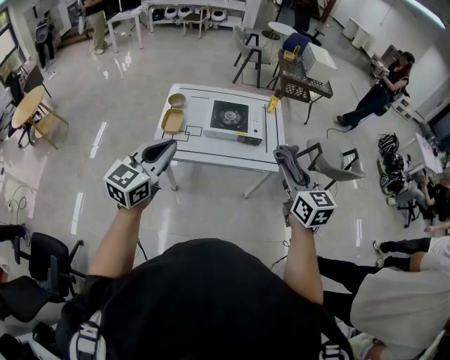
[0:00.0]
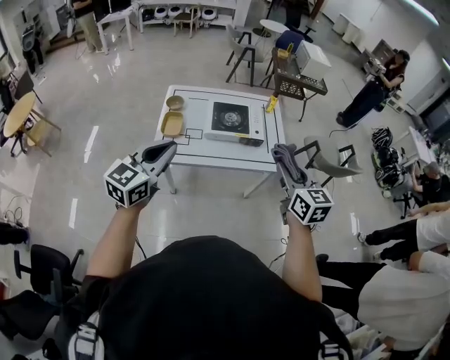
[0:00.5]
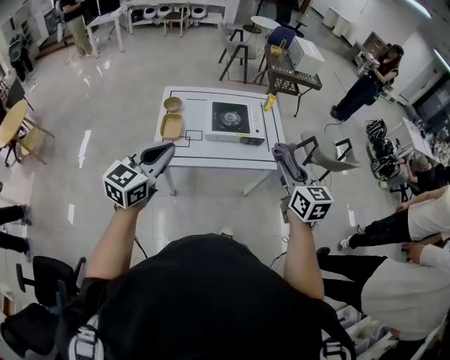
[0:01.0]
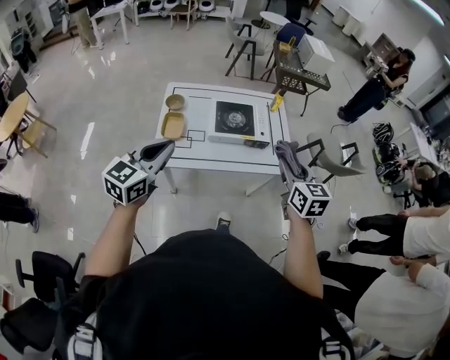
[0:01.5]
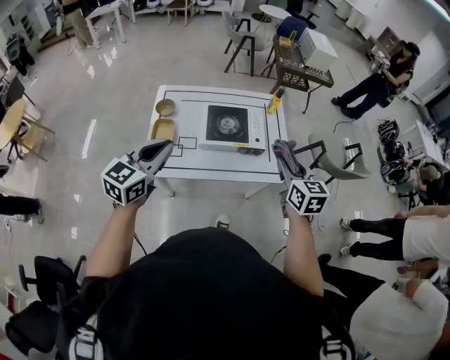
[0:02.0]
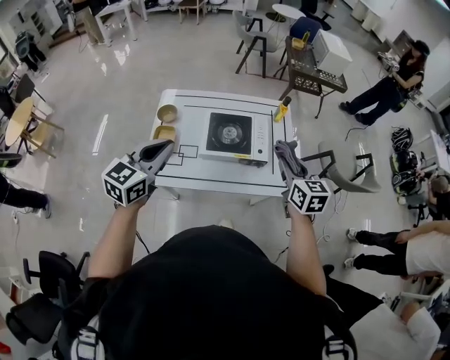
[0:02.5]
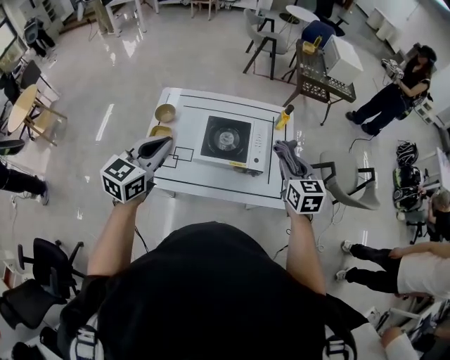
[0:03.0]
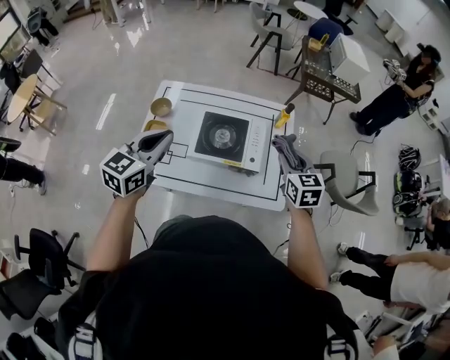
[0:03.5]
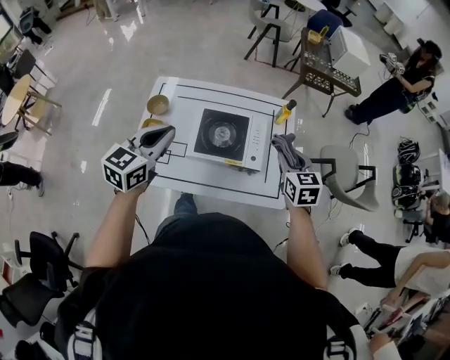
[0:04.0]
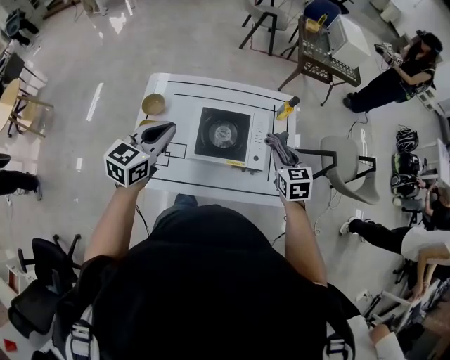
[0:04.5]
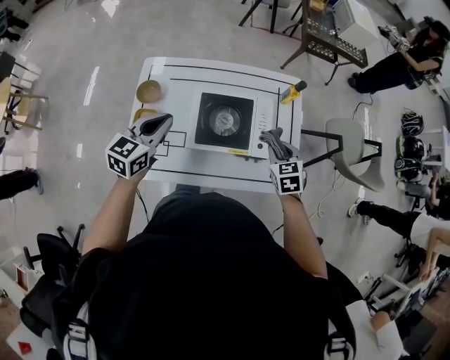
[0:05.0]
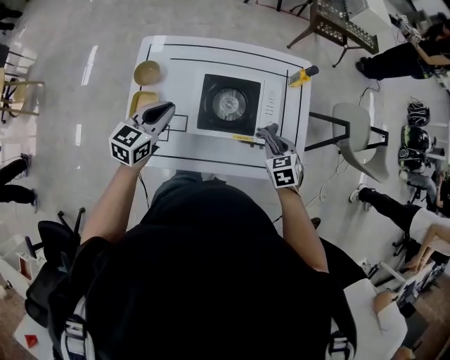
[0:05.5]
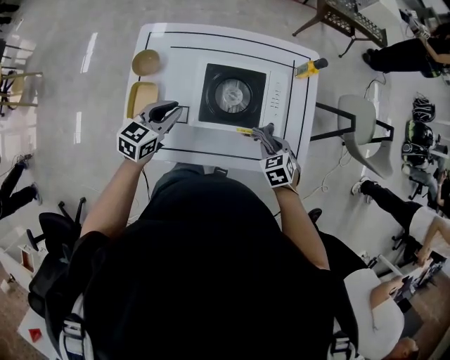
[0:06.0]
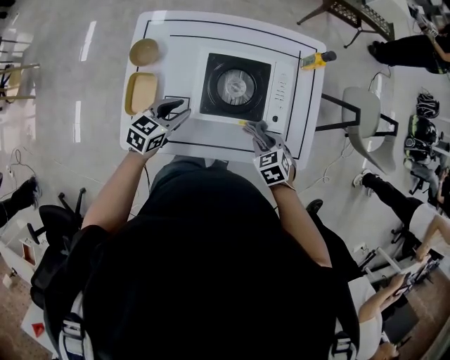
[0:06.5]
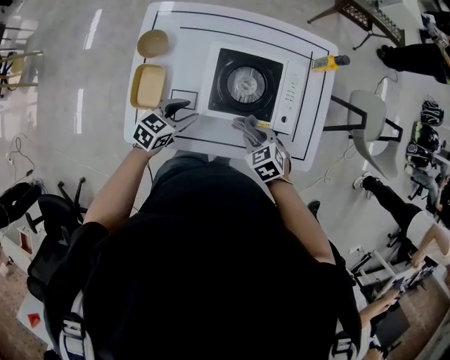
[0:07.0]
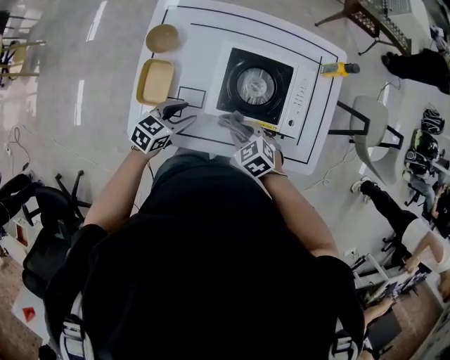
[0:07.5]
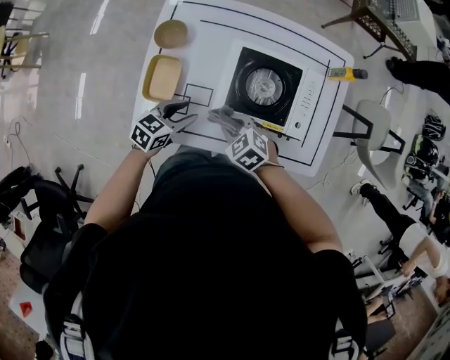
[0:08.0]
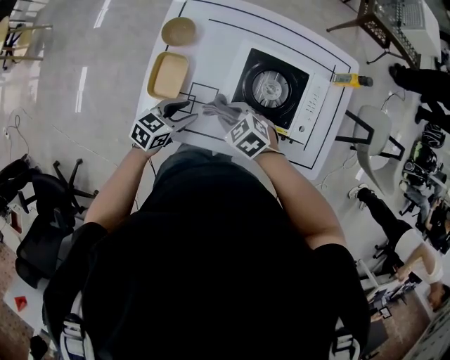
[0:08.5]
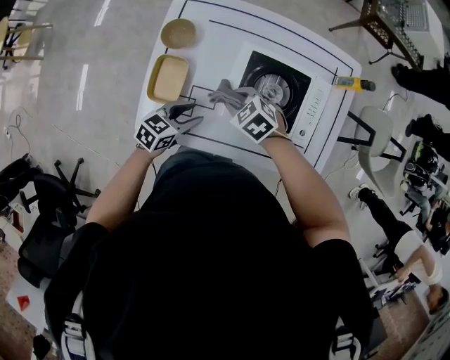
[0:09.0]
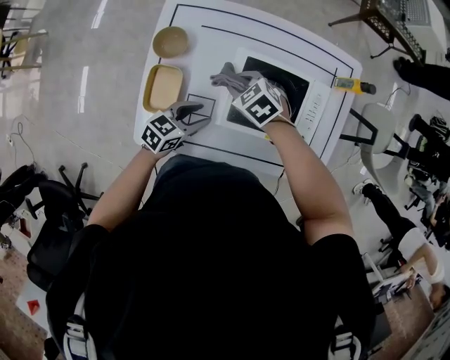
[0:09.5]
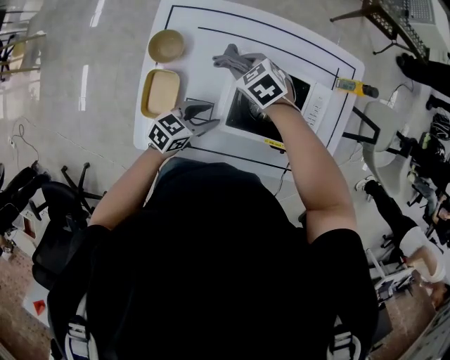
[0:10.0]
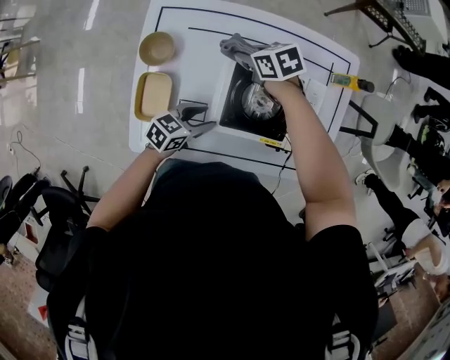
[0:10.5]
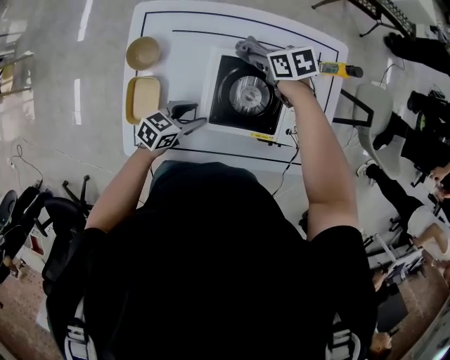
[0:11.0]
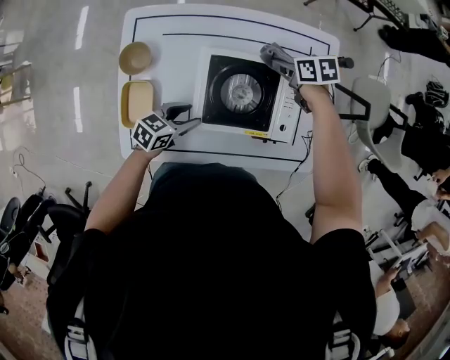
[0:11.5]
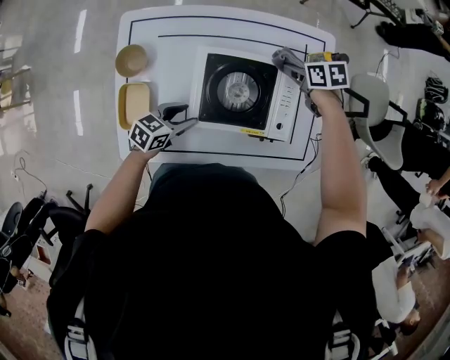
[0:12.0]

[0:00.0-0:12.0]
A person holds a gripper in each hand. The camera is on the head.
0:00.0 to 0:02.0: The right gripper shifts approximately 20 cm forward and downward; the left gripper goes approximately 20 cm forward.
0:02.0 to 0:04.0: The two grippers go about 25 cm forward.
0:04.0 to 0:06.0: The left gripper heads downward and forward, covering approximately 25 cm; the right gripper goes roughly 25 cm downward, and points its fingers some 30 degrees further downward.
0:06.0 to 0:08.0: The left gripper is displaced downward, backward and to the left by about 15 cm, and opens its fingers. Meanwhile the right gripper shifts some 25 cm to the left, and rotates roughly 30 degrees.
0:08.0 to 0:10.0: The right gripper shifts by about 25 cm, while the left gripper shifts by approximately 10 cm.
0:10.0 to 0:12.0: The right gripper shifts by approximately 30 cm, and rolls clockwise, seen from behind, by approximately 40 degrees.

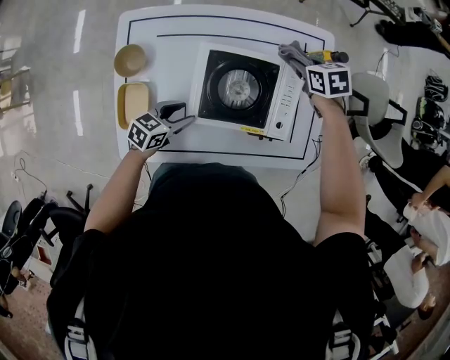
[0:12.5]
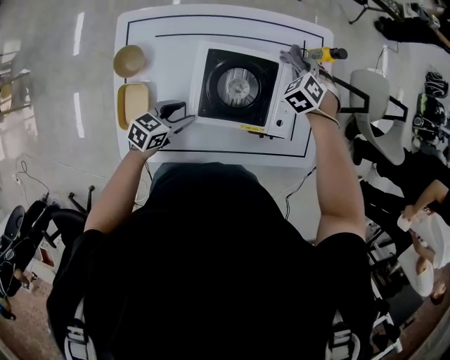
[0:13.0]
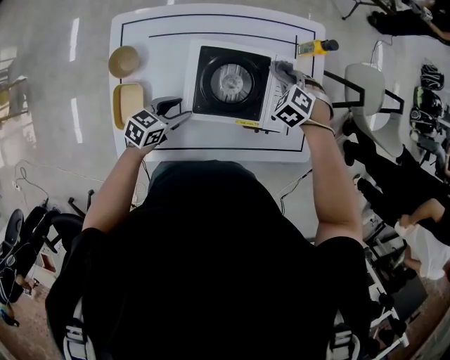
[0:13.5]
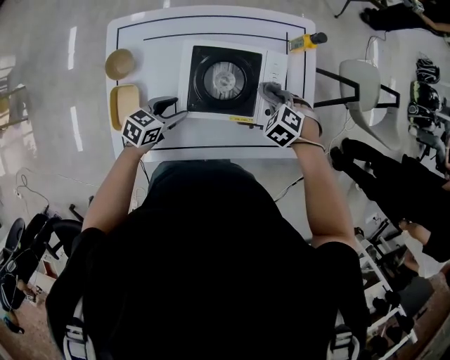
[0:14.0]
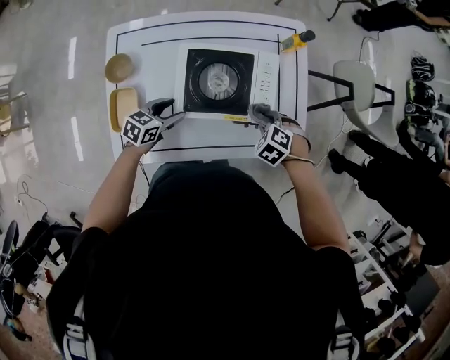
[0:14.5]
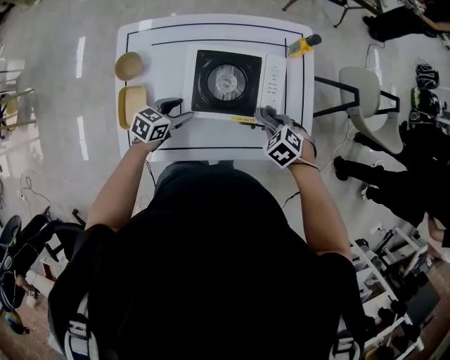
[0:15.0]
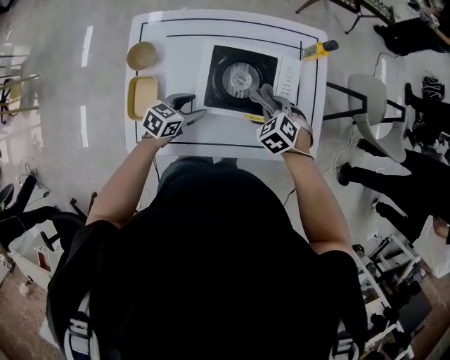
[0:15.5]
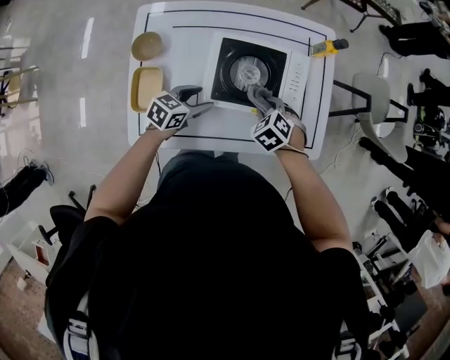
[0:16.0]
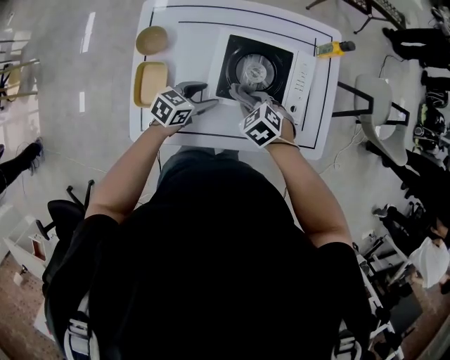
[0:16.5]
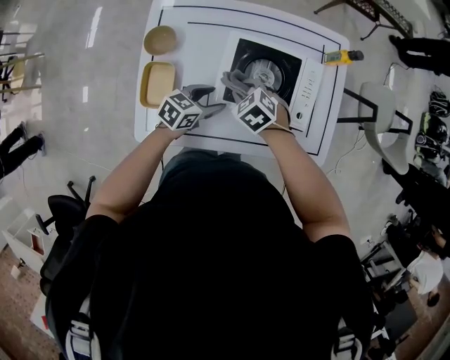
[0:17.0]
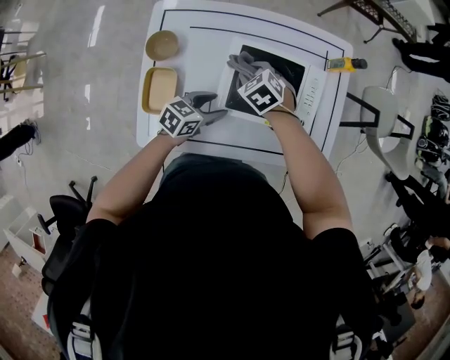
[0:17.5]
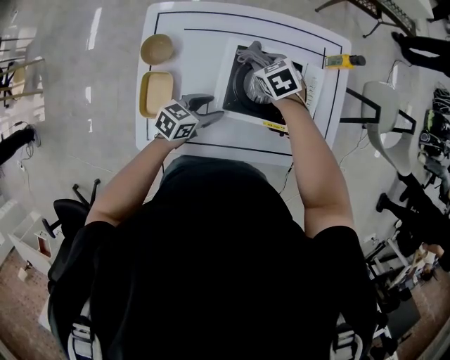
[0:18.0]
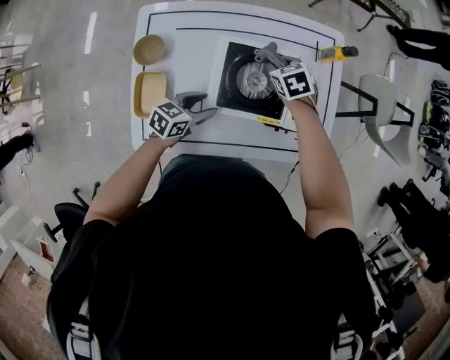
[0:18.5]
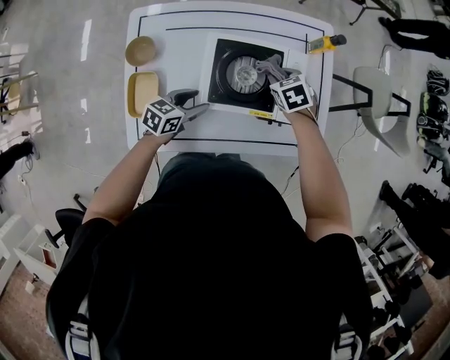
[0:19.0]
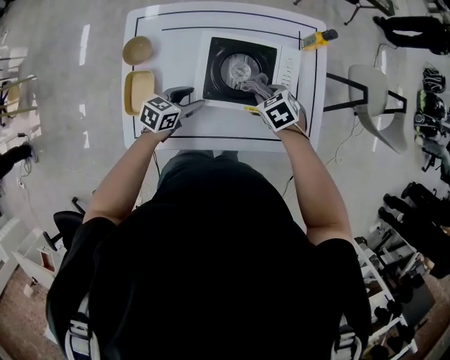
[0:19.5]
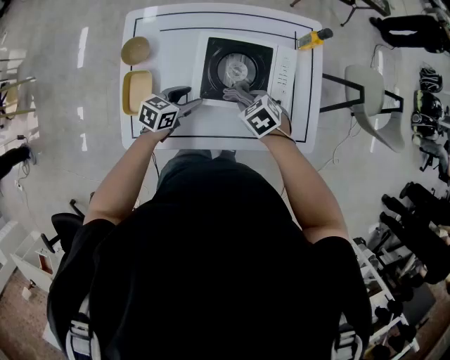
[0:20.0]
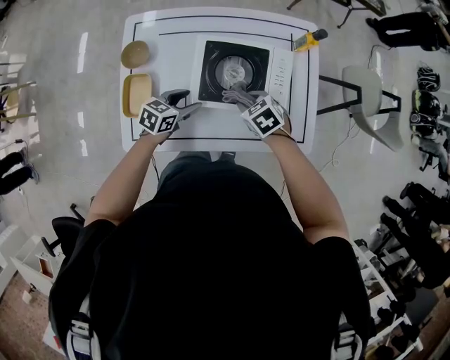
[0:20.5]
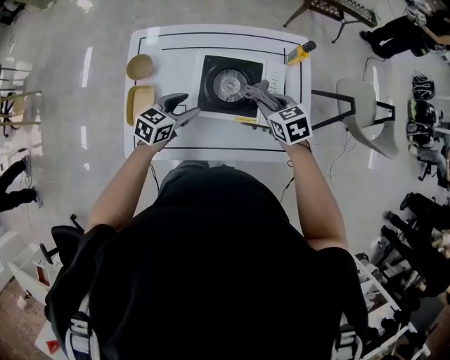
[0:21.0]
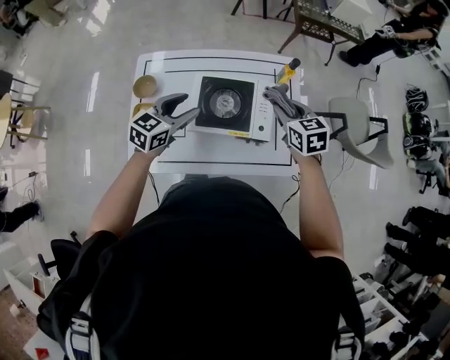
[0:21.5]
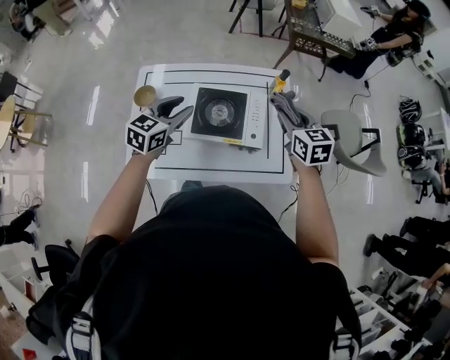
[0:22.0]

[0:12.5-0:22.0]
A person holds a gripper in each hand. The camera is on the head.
0:12.5 to 0:14.5: The right gripper moves roughly 25 cm, and twists approximately 40 degrees counterclockwise, seen from behind.
0:14.5 to 0:16.5: The right gripper changes place by roughly 20 cm.
0:16.5 to 0:18.0: The right gripper goes about 20 cm forward.
0:18.0 to 0:20.0: The right gripper is displaced backward and to the right by some 20 cm.
0:20.0 to 0:22.0: The right gripper travels upward and to the right by roughly 35 cm, and tips its fingers upward by some 40 degrees, while the left gripper travels upward by approximately 25 cm, and rotates approximately 30 degrees.

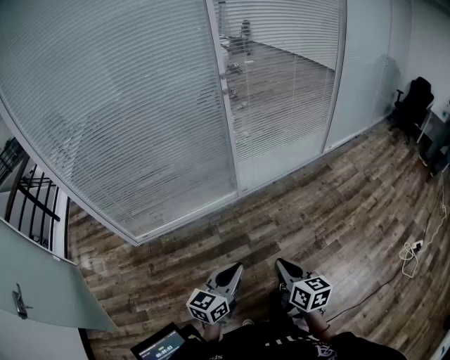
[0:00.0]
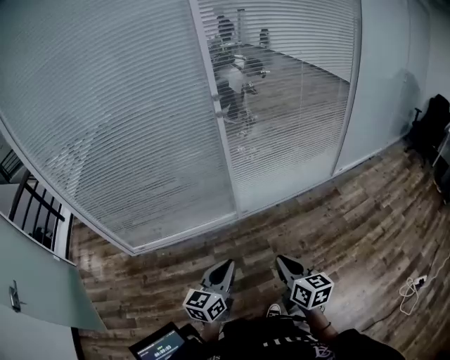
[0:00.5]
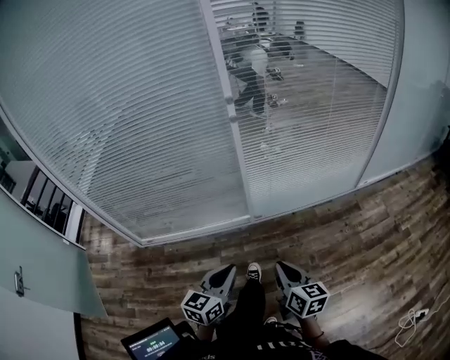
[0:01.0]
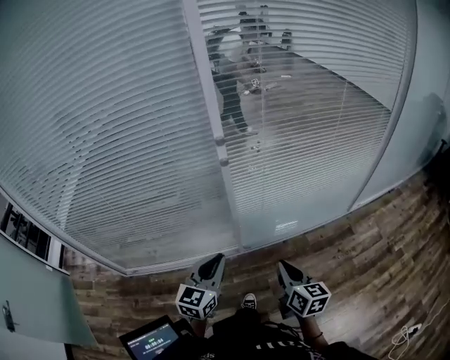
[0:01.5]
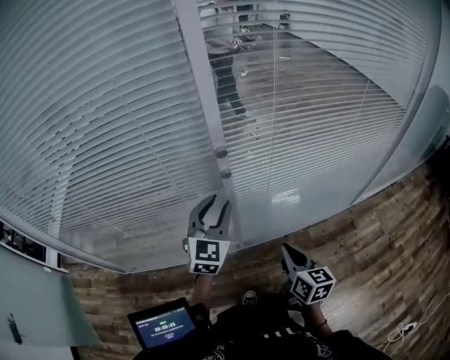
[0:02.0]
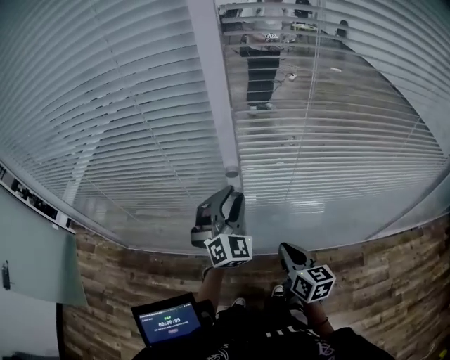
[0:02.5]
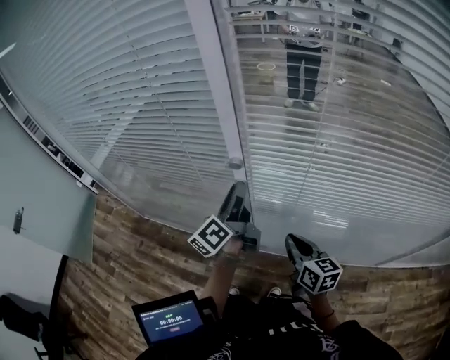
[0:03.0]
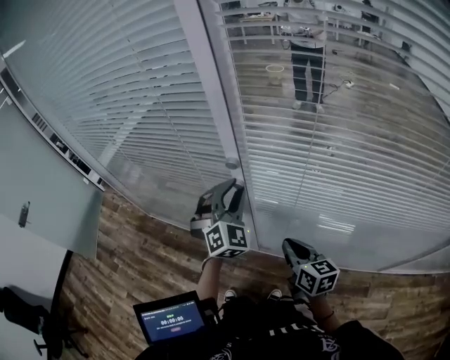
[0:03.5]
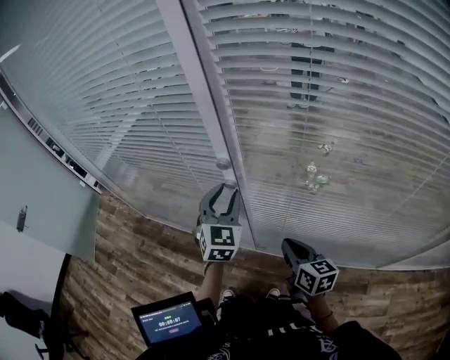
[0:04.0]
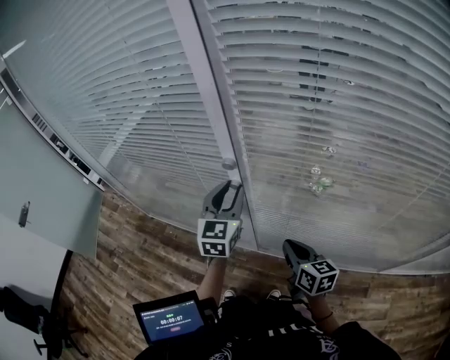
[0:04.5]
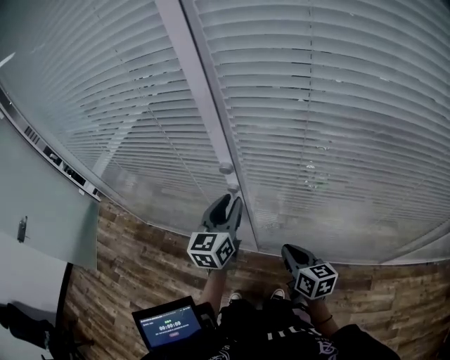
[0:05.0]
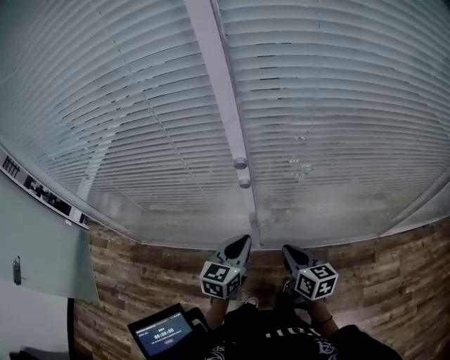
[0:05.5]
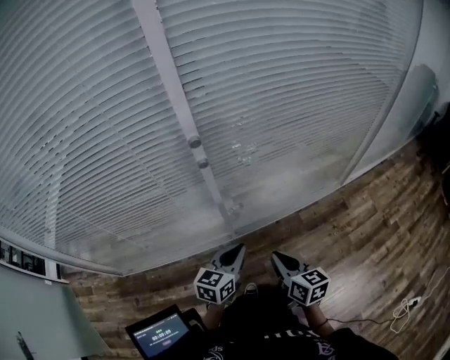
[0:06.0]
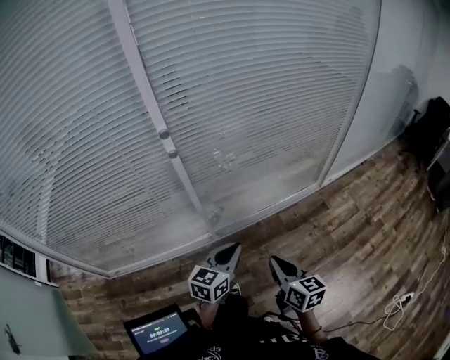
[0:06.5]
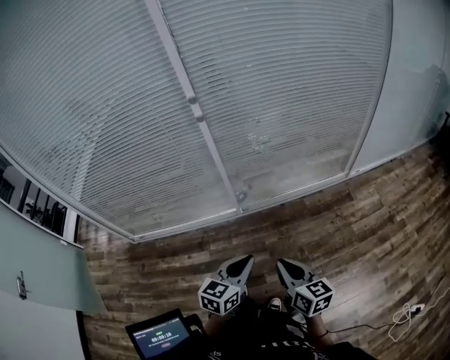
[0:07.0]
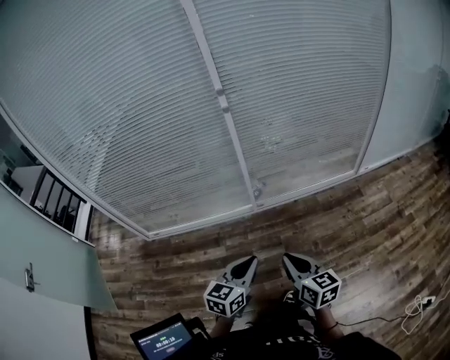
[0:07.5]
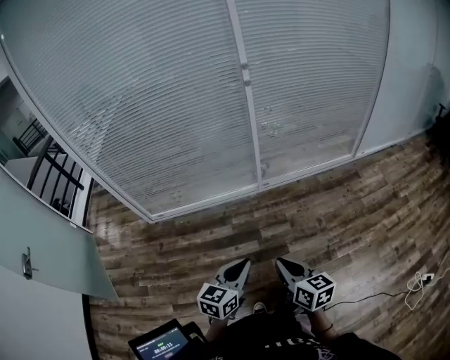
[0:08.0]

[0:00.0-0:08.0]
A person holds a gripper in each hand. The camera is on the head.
0:00.0 to 0:02.0: The two grippers travel together, forward, some 80 cm. The left gripper swivels about 50 degrees, and opens up.
0:02.0 to 0:04.0: The left gripper changes place by approximately 10 cm, and rotates roughly 40 degrees. Meanwhile the right gripper moves roughly 15 cm, and changes its angle by approximately 40 degrees.
0:04.0 to 0:06.0: The left gripper moves roughly 25 cm, changes its angle by approximately 60 degrees, and closes up. The right gripper changes place by approximately 25 cm, and turns by roughly 30 degrees.
0:06.0 to 0:08.0: Both grippers are carried backward, roughly 60 cm.
